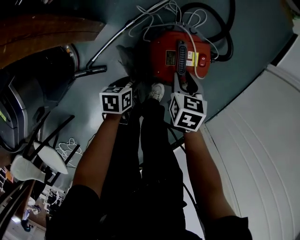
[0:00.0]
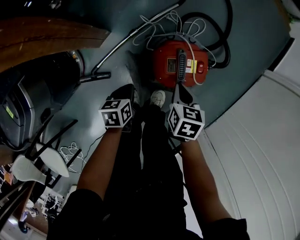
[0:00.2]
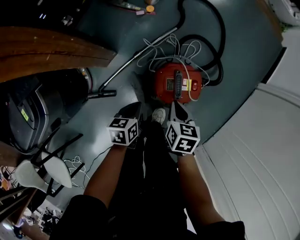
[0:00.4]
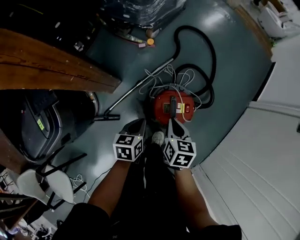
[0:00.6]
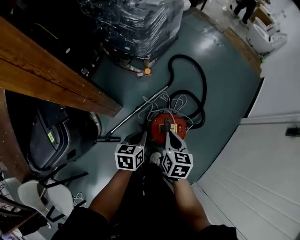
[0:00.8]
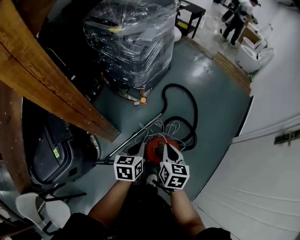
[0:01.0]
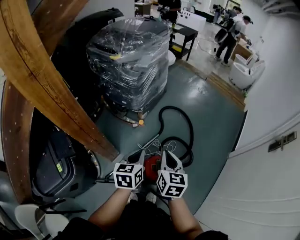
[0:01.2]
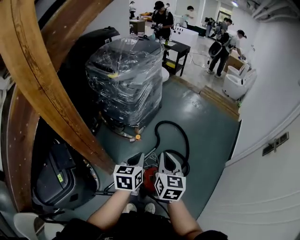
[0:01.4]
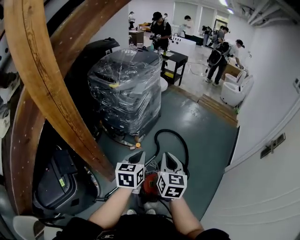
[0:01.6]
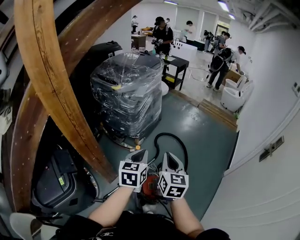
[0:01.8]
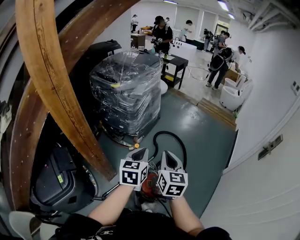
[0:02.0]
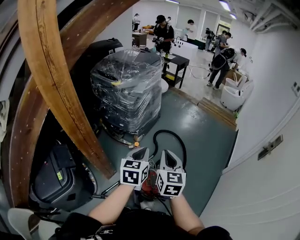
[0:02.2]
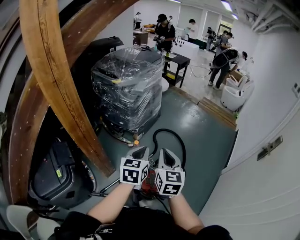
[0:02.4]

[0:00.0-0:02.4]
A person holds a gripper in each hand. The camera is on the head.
0:00.0 to 0:01.2: The two grippers go some 50 cm upward. The left gripper swivels about 40 degrees, and closes its fingers; the right gripper points its fingers roughly 30 degrees further upward, and closes its fingers.
0:01.2 to 0:02.4: The left gripper moves upward and to the right, approximately 15 cm; the right gripper shifts about 10 cm upward.

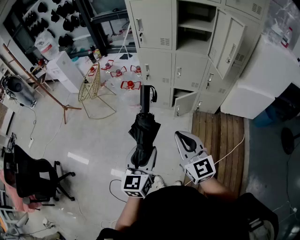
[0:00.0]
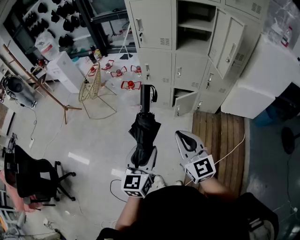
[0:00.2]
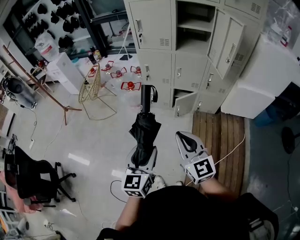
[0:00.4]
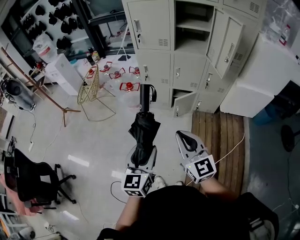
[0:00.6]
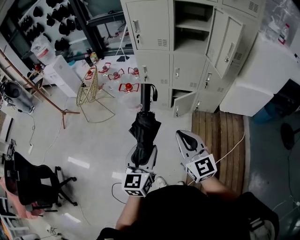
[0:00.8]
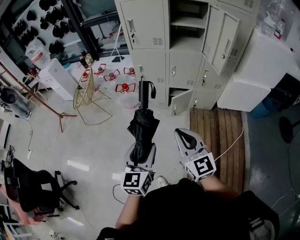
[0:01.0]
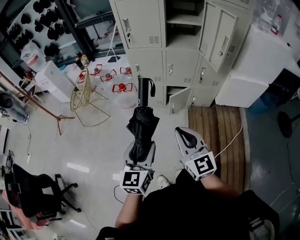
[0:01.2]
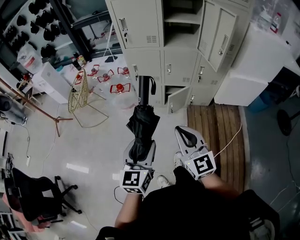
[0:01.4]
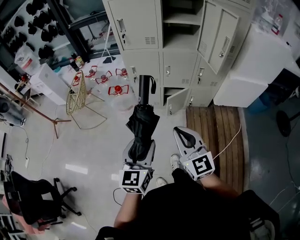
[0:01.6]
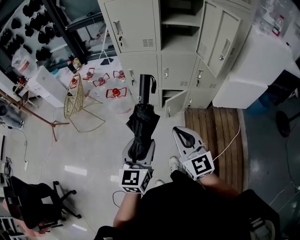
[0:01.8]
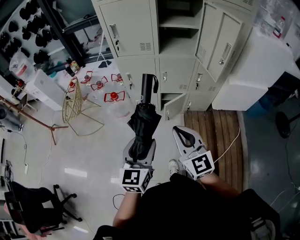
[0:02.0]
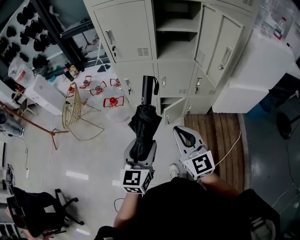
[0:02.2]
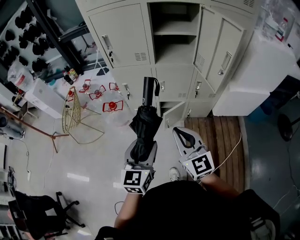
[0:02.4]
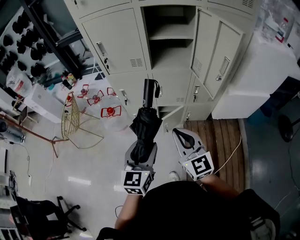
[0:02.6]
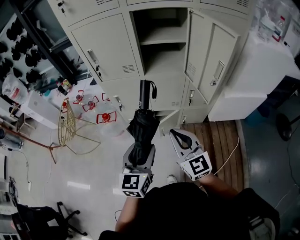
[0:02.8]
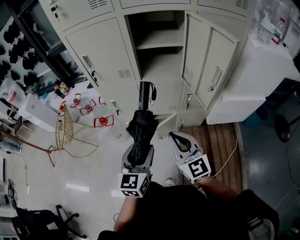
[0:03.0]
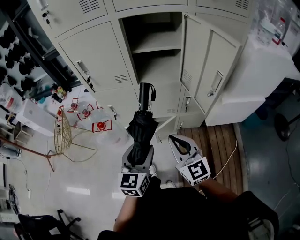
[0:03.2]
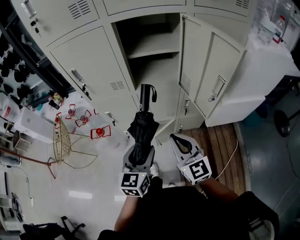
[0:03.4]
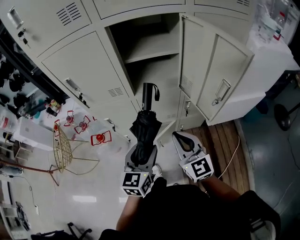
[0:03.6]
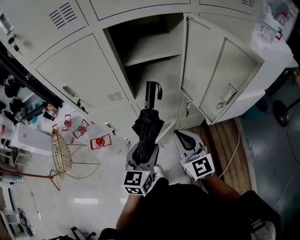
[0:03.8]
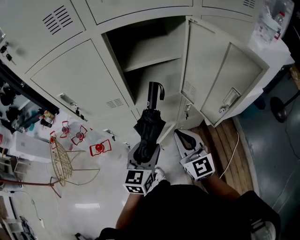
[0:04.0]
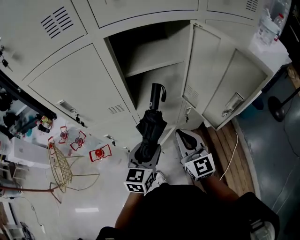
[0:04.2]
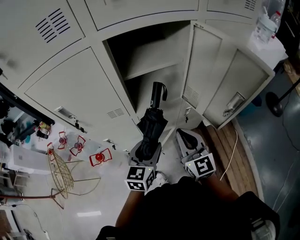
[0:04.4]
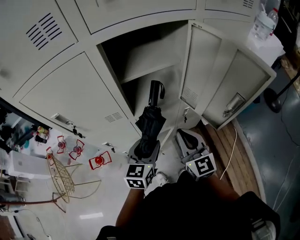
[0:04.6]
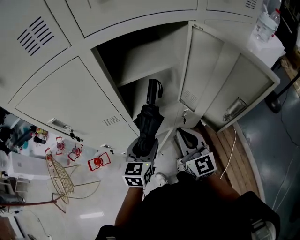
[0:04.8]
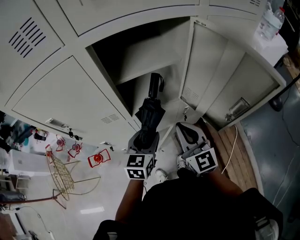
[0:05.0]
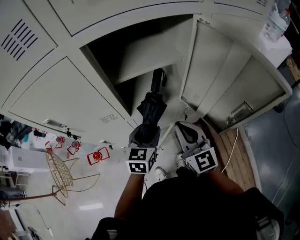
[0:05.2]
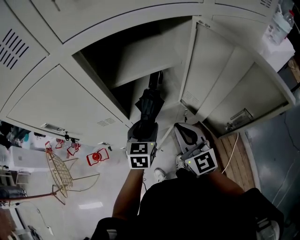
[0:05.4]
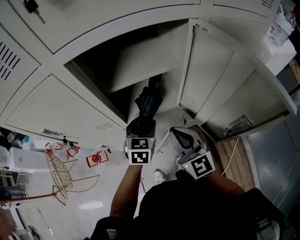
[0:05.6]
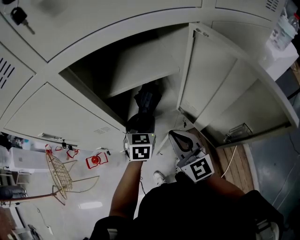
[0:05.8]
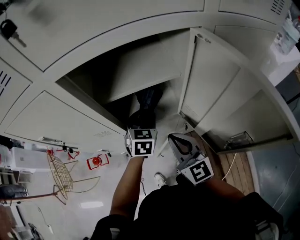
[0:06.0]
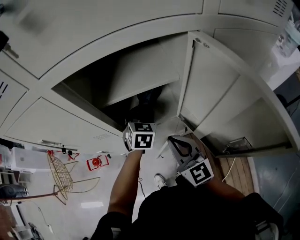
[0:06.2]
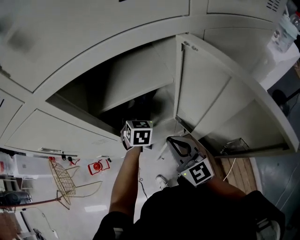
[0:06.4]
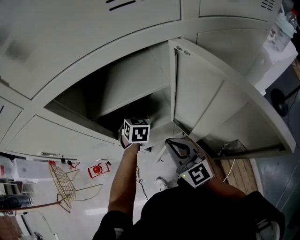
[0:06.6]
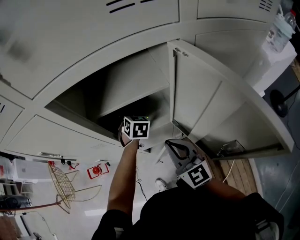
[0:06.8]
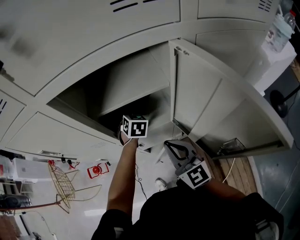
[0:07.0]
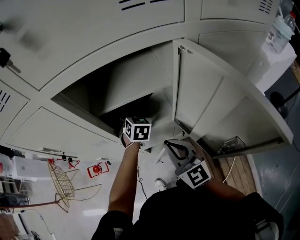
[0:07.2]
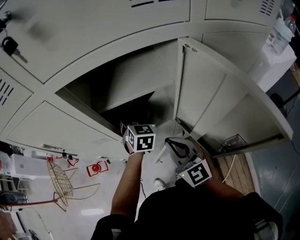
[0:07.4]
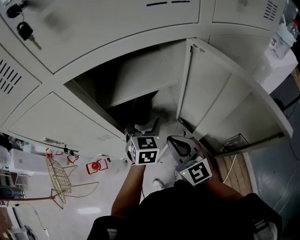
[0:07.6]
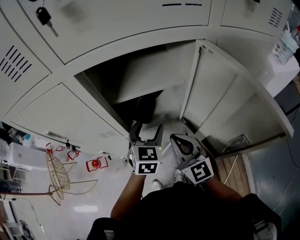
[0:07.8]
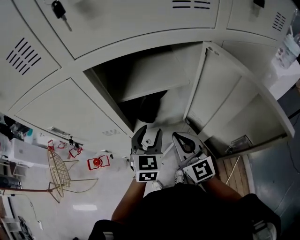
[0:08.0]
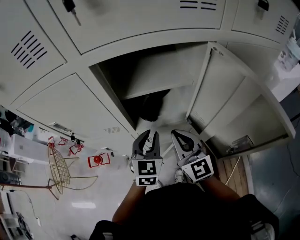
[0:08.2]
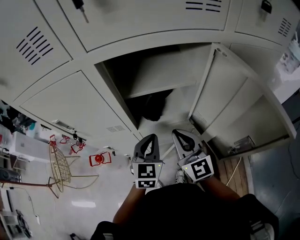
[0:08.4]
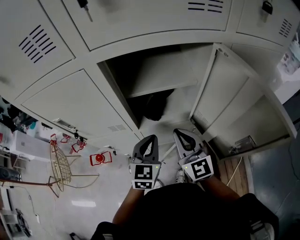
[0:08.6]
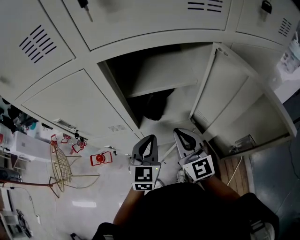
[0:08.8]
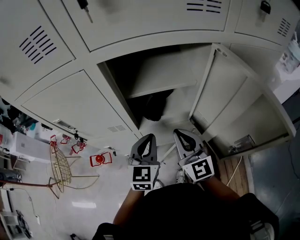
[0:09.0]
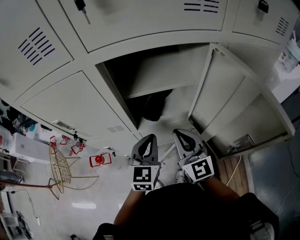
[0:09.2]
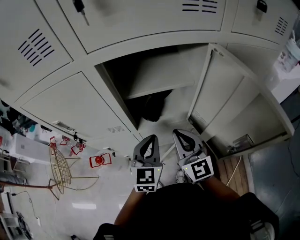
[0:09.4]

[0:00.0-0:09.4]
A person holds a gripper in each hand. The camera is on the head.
0:00.0 to 0:01.6: Both grippers move forward, approximately 10 cm.
0:01.6 to 0:03.2: Both grippers travel together forward and to the right, some 30 cm.
0:03.2 to 0:04.8: The two grippers go some 20 cm forward. The left gripper rotates approximately 20 degrees. The right gripper rotates roughly 20 degrees.
0:04.8 to 0:06.2: The left gripper moves forward, roughly 20 cm, and turns by some 30 degrees, while the right gripper shifts some 5 cm forward.
0:06.2 to 0:07.8: The left gripper shifts some 10 cm backward and upward.
0:07.8 to 0:09.4: The left gripper travels backward by some 5 cm, and closes.

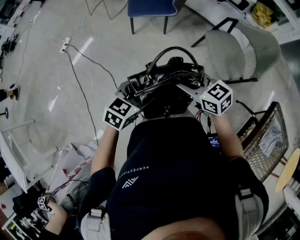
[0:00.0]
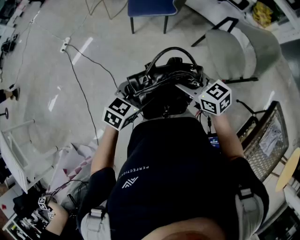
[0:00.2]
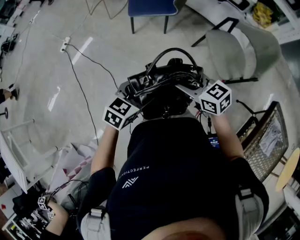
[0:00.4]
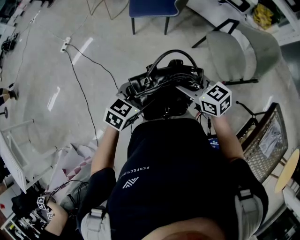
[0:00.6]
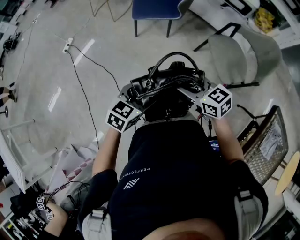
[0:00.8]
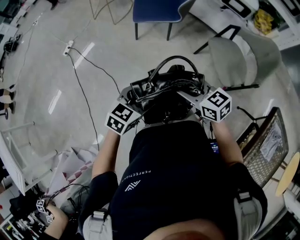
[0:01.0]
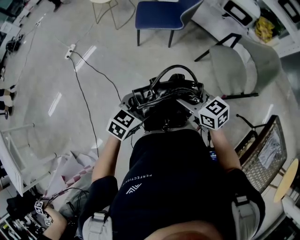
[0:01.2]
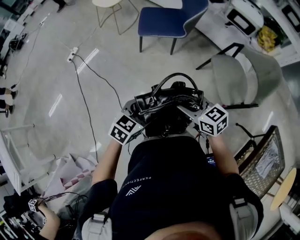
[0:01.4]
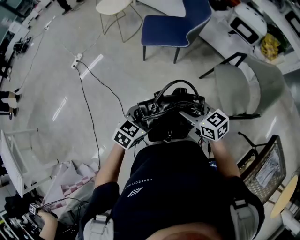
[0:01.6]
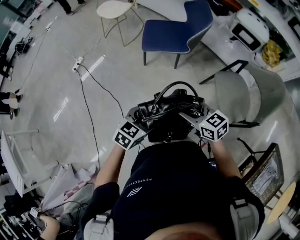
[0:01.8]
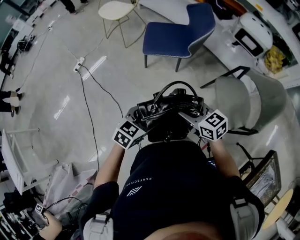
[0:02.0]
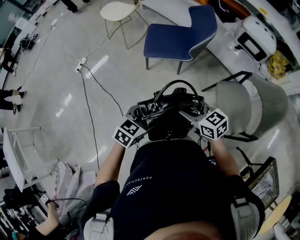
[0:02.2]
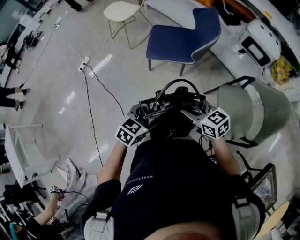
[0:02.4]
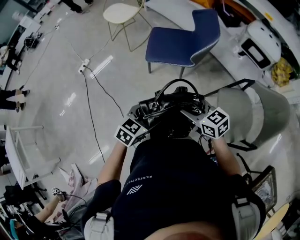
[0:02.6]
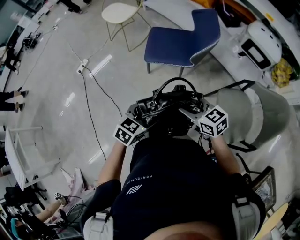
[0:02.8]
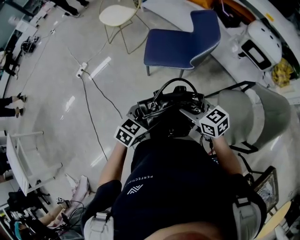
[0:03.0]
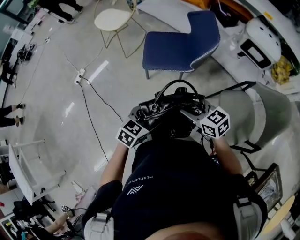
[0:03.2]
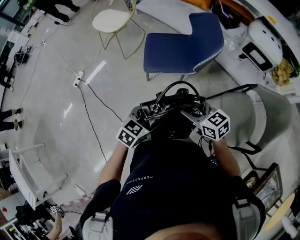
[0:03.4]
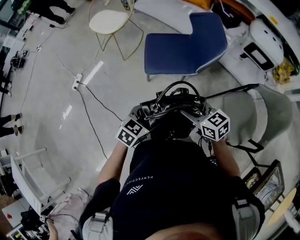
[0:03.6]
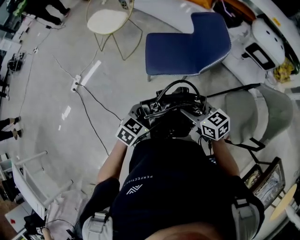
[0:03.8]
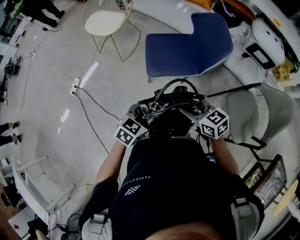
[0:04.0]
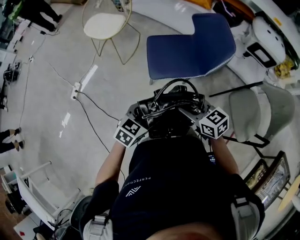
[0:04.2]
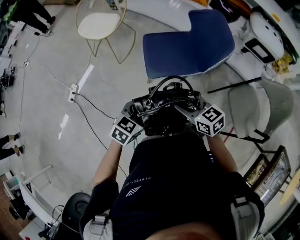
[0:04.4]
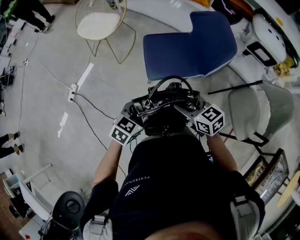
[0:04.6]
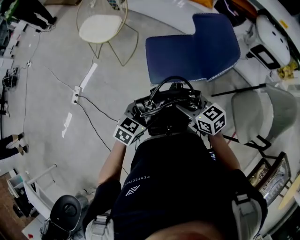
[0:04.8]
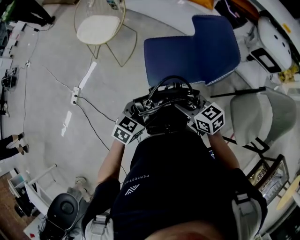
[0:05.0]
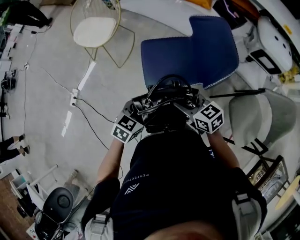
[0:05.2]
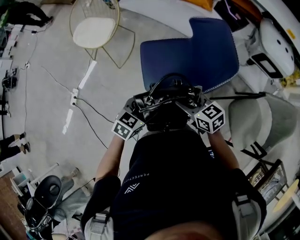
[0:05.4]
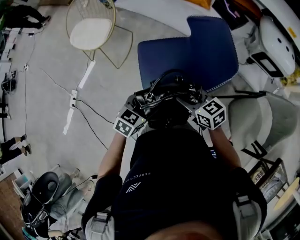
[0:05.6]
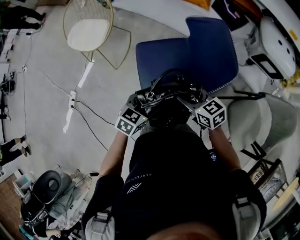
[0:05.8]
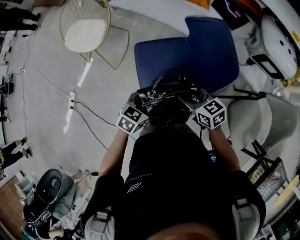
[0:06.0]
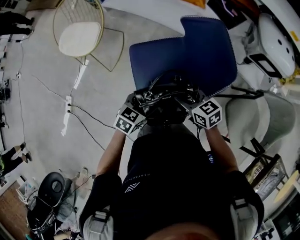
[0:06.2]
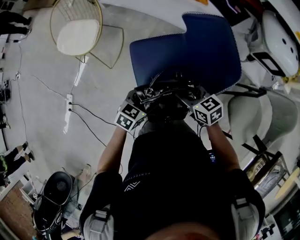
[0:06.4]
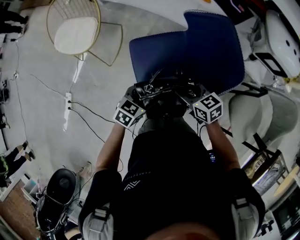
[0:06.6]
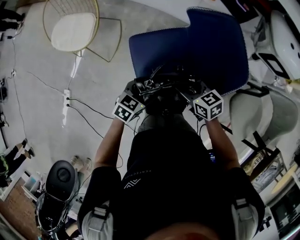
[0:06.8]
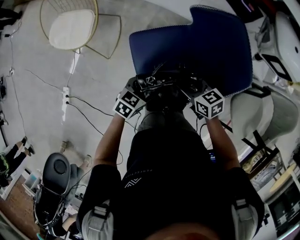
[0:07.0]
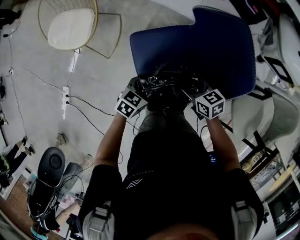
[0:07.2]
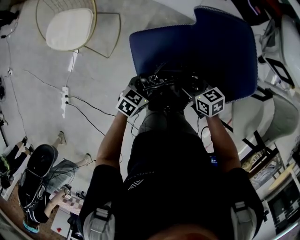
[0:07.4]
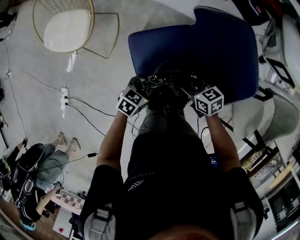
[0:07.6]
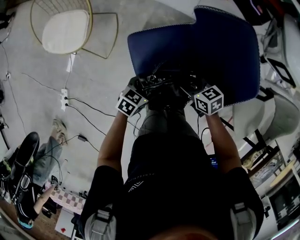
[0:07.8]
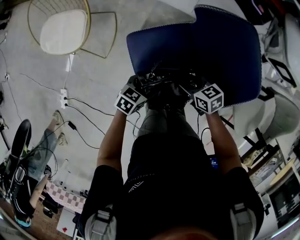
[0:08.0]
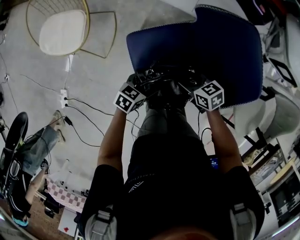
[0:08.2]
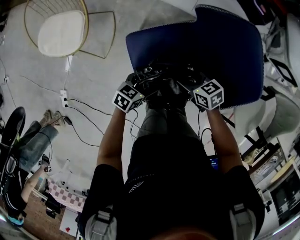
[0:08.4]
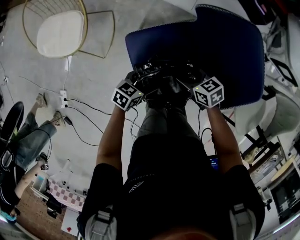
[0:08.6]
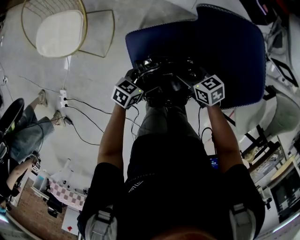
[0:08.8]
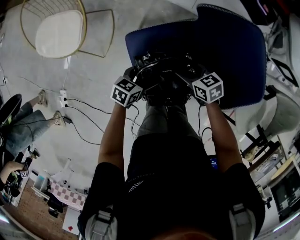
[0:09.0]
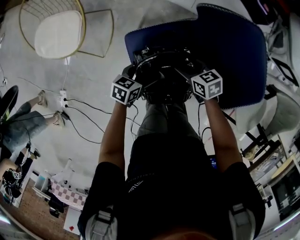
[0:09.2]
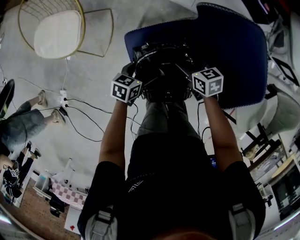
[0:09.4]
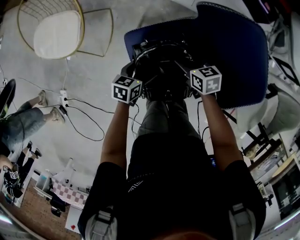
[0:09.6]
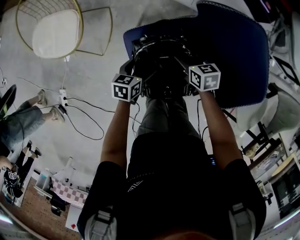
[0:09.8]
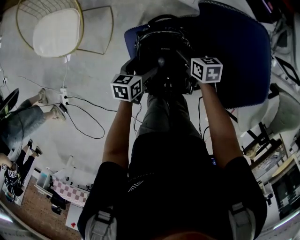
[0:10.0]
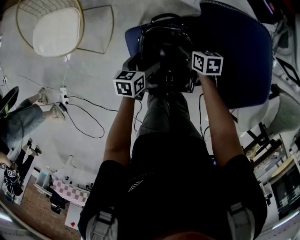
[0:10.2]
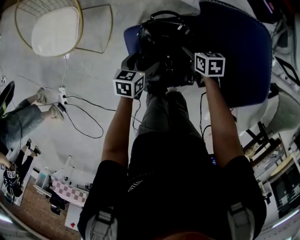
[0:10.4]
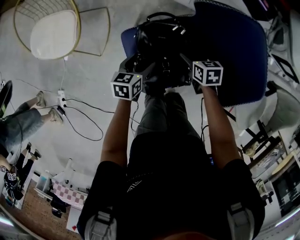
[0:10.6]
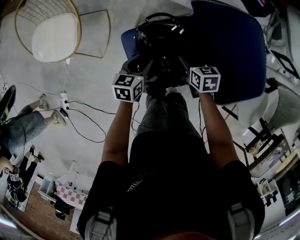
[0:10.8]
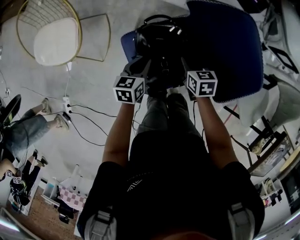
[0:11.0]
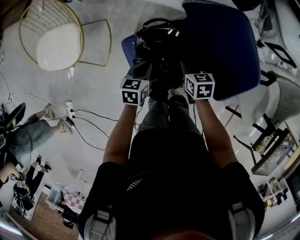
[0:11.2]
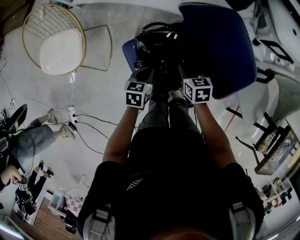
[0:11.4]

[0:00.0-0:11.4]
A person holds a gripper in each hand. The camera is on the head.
0:00.0 to 0:01.4: The grippers stay close to where they were, moving slightly.
0:01.4 to 0:02.8: Both grippers move forward, about 25 cm.
0:02.8 to 0:04.2: The grippers both shift forward and to the left by approximately 20 cm.
0:04.2 to 0:05.6: The two grippers go approximately 20 cm forward.
0:05.6 to 0:07.2: The two grippers go some 15 cm forward and downward.
0:07.2 to 0:08.6: The grippers both shift downward by roughly 5 cm.
0:08.6 to 0:10.0: The left gripper changes place by roughly 10 cm, and swivels some 30 degrees, while the right gripper ends up roughly 10 cm from where it was, and turns by roughly 20 degrees.
0:10.0 to 0:11.4: The left gripper shifts roughly 5 cm upward, and closes its fingers; the right gripper is displaced backward and upward by approximately 10 cm, and closes its fingers.
